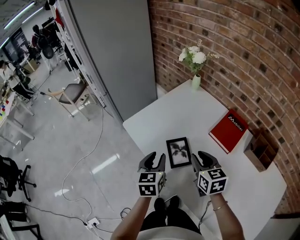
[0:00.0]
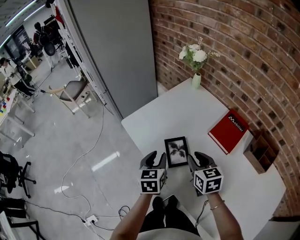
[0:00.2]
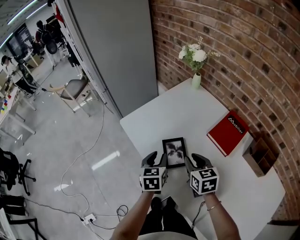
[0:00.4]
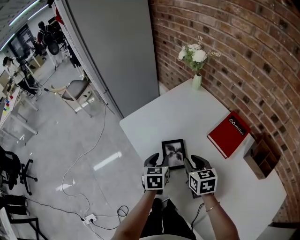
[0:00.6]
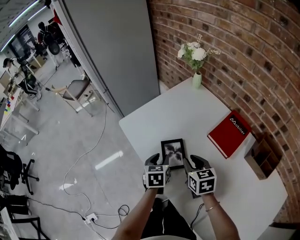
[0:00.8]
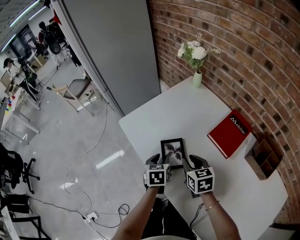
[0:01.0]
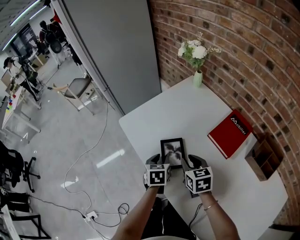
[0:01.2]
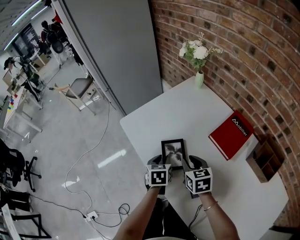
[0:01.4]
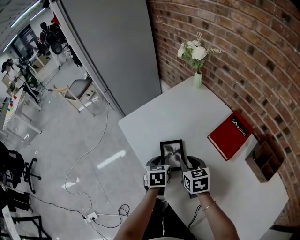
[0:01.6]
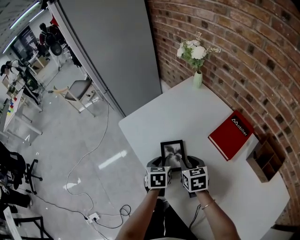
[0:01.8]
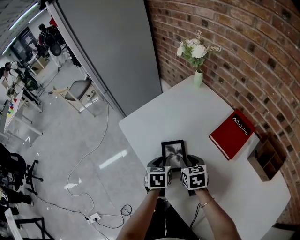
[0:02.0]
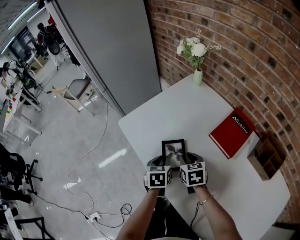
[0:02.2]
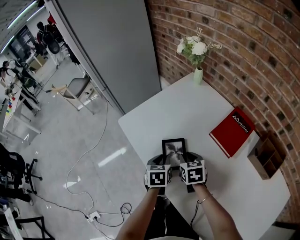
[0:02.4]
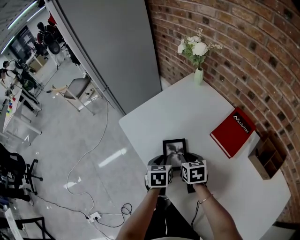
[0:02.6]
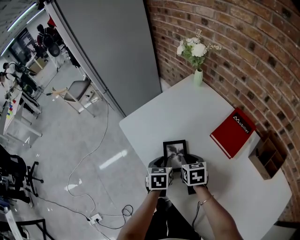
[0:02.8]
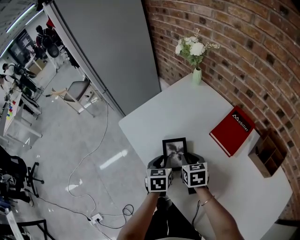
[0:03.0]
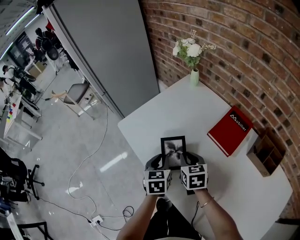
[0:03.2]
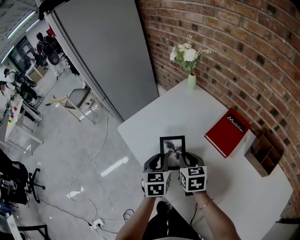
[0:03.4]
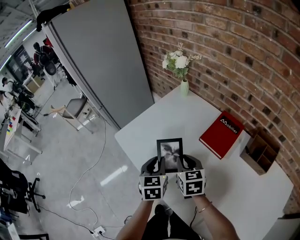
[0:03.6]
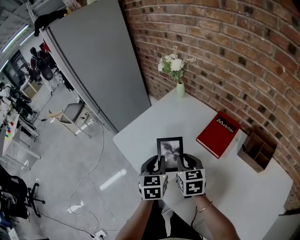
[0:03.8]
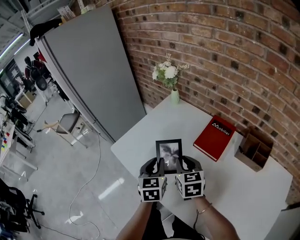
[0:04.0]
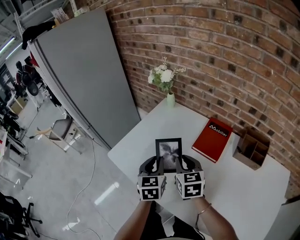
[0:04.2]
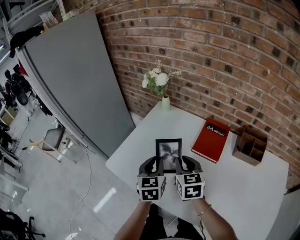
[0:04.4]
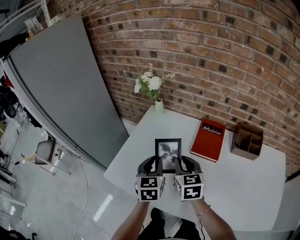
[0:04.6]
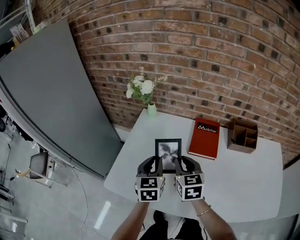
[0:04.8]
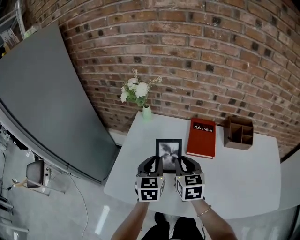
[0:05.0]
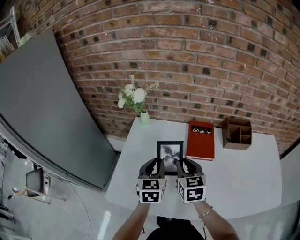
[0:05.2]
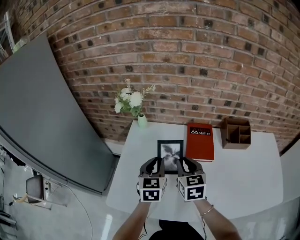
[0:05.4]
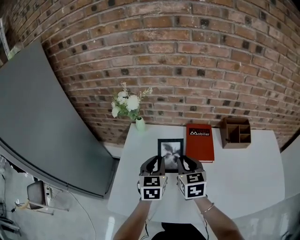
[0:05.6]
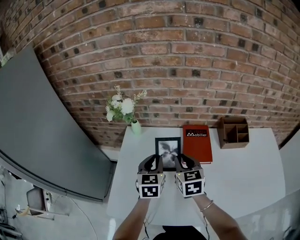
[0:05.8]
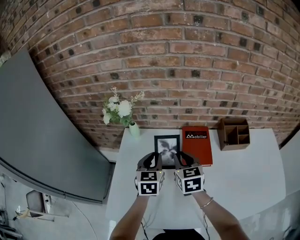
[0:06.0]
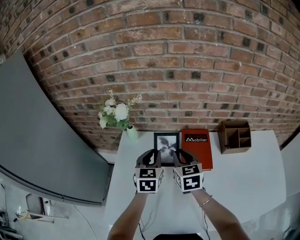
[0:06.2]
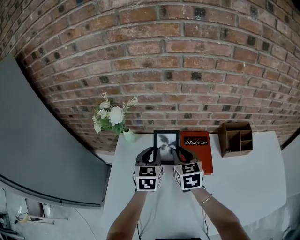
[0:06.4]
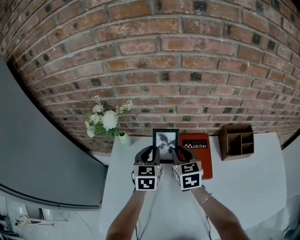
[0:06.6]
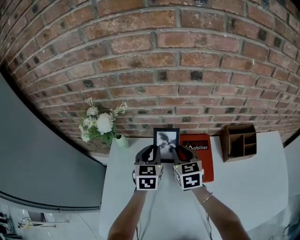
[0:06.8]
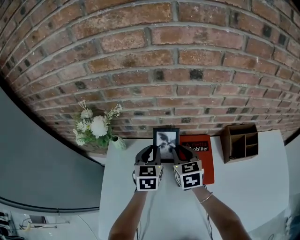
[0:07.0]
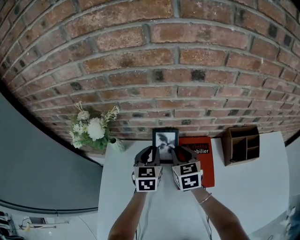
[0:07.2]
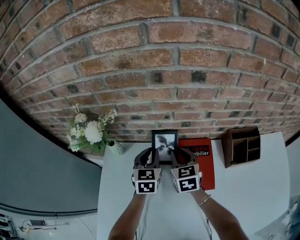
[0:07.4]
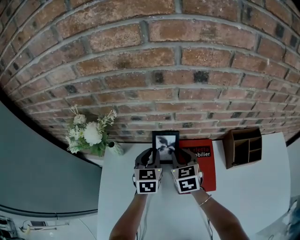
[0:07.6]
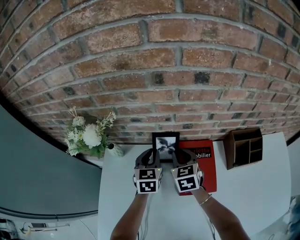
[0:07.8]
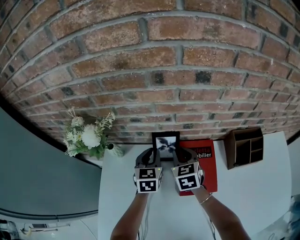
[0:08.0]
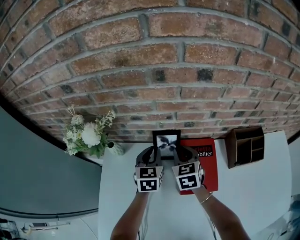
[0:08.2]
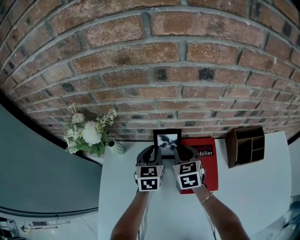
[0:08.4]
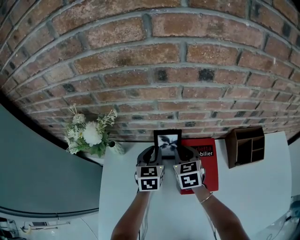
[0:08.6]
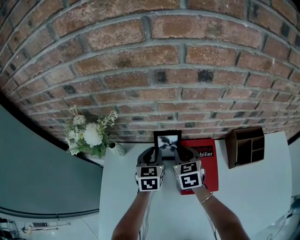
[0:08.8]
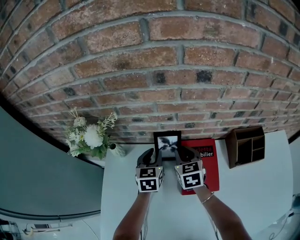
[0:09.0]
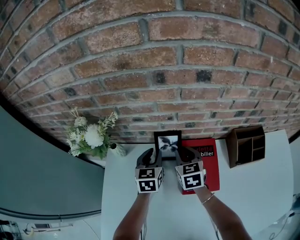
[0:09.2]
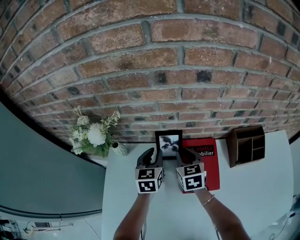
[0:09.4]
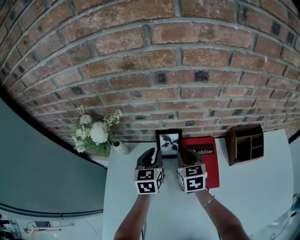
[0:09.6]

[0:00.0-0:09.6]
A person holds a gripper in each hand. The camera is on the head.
0:00.0 to 0:01.6: The left gripper heads downward and to the right, covering approximately 15 cm, and swivels about 20 degrees. Meanwhile the right gripper travels downward by roughly 10 cm.
0:01.6 to 0:03.2: There are only small adjustments of the grippers.
0:03.2 to 0:04.8: The right gripper travels upward by approximately 10 cm, and changes its angle by some 40 degrees. The left gripper shifts by roughly 20 cm, and swivels some 40 degrees.
0:04.8 to 0:06.4: Both grippers travel together forward, about 20 cm.
0:06.4 to 0:08.0: The two grippers go some 15 cm forward and downward.
0:08.0 to 0:09.6: There are only small adjustments of the grippers.

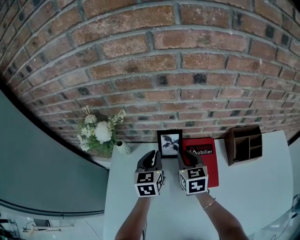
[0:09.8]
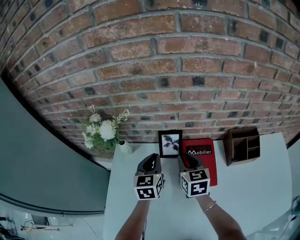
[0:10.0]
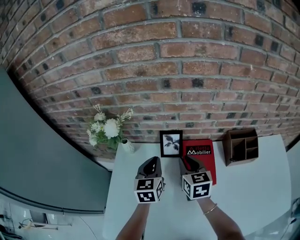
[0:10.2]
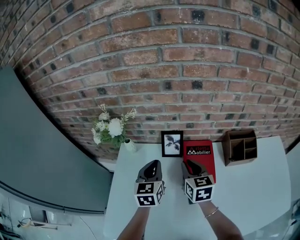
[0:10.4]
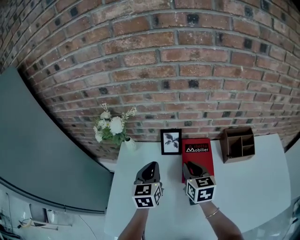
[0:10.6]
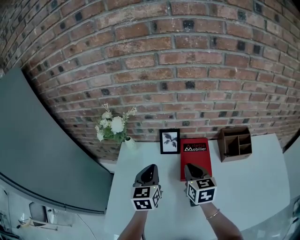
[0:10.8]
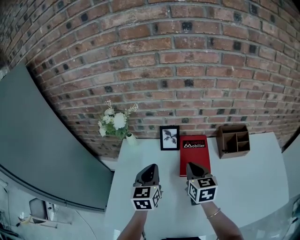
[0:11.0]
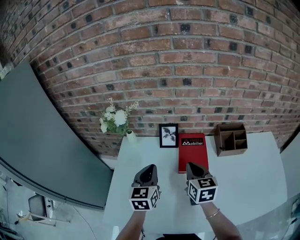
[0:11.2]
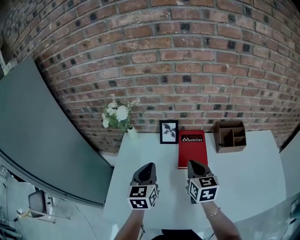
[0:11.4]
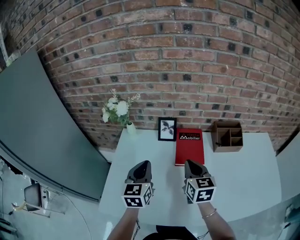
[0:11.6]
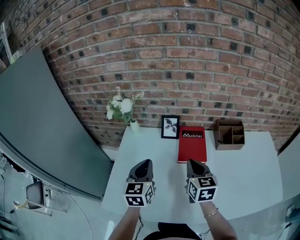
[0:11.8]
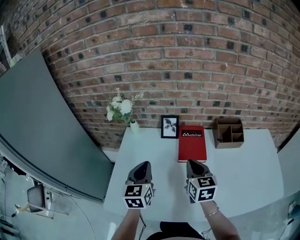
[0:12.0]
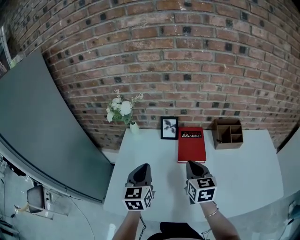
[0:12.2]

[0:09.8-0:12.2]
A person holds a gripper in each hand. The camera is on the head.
0:09.8 to 0:11.0: The grippers both shift backward and upward by about 15 cm.
0:11.0 to 0:12.2: Both grippers move backward, approximately 10 cm.

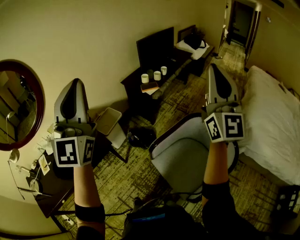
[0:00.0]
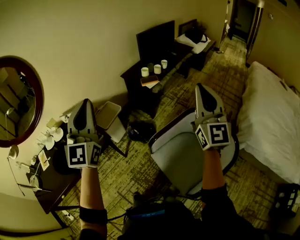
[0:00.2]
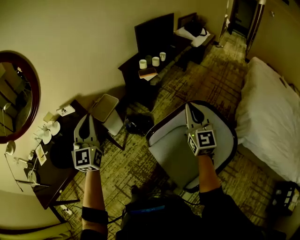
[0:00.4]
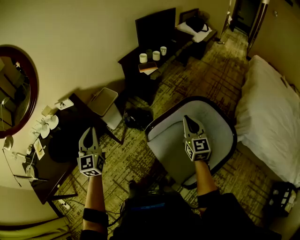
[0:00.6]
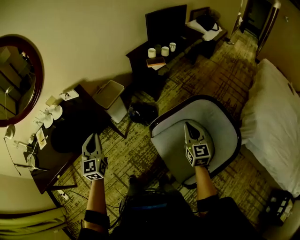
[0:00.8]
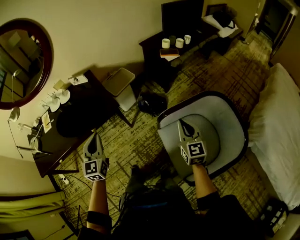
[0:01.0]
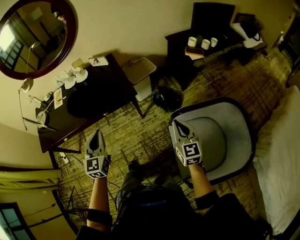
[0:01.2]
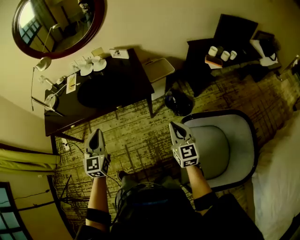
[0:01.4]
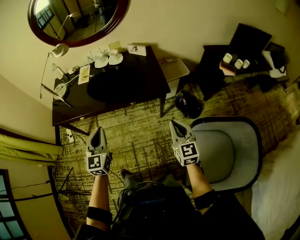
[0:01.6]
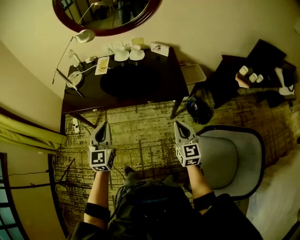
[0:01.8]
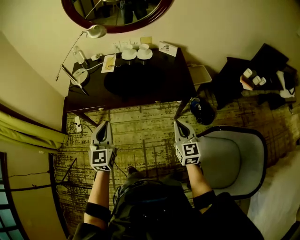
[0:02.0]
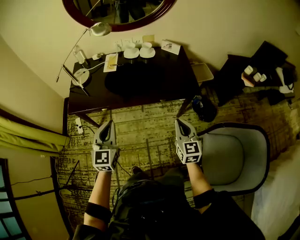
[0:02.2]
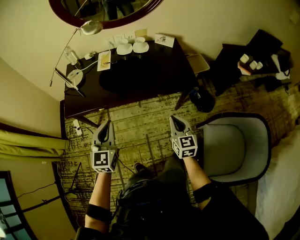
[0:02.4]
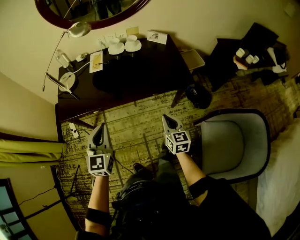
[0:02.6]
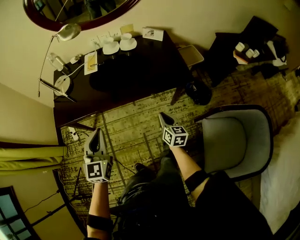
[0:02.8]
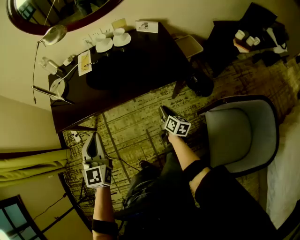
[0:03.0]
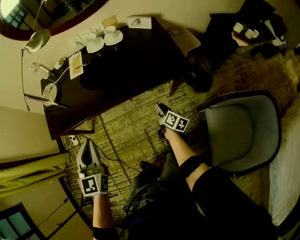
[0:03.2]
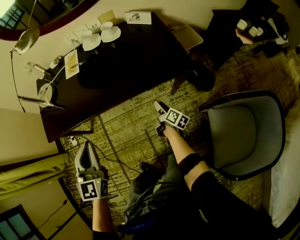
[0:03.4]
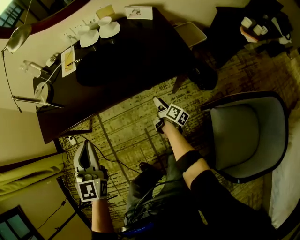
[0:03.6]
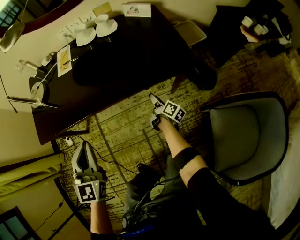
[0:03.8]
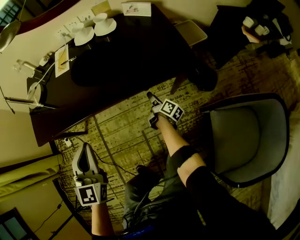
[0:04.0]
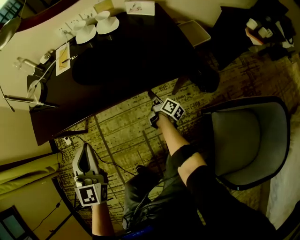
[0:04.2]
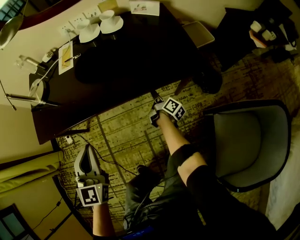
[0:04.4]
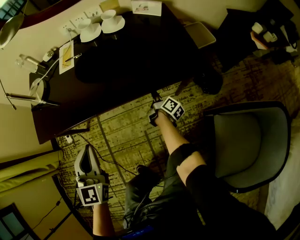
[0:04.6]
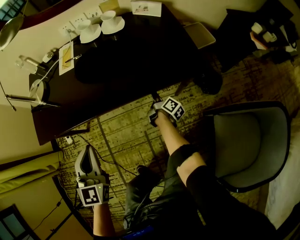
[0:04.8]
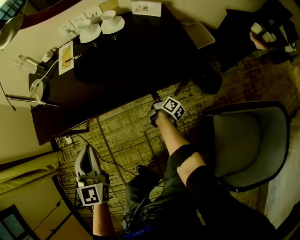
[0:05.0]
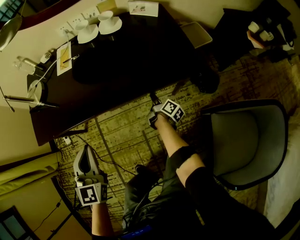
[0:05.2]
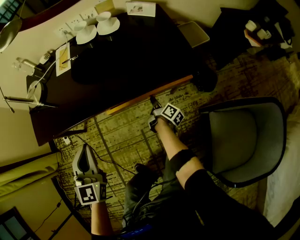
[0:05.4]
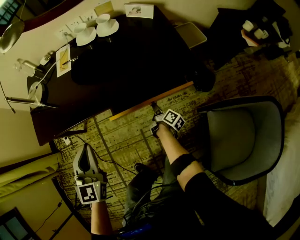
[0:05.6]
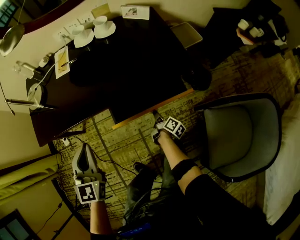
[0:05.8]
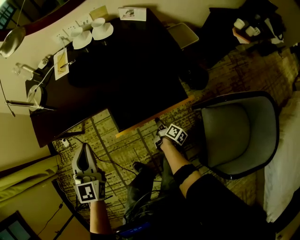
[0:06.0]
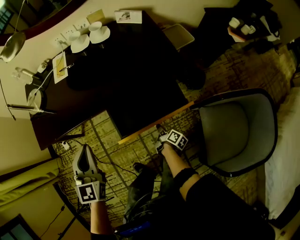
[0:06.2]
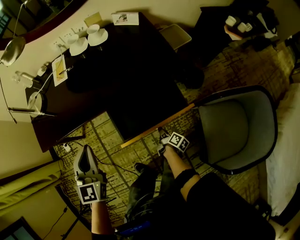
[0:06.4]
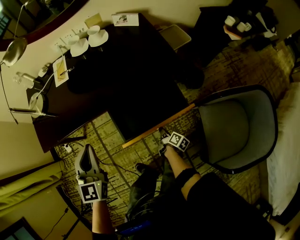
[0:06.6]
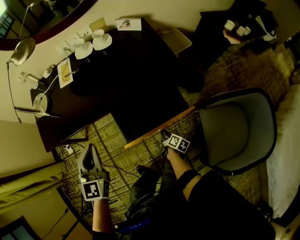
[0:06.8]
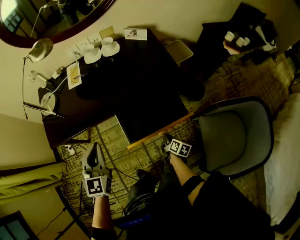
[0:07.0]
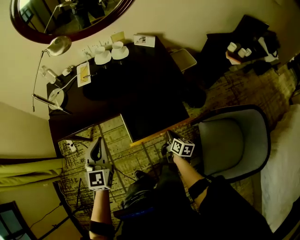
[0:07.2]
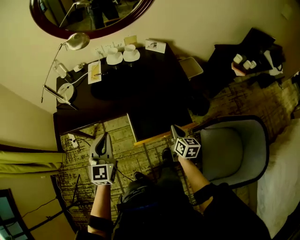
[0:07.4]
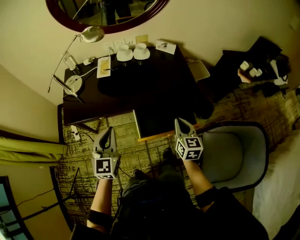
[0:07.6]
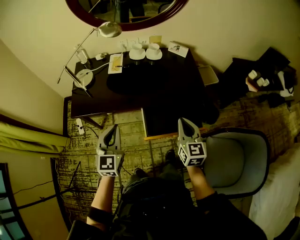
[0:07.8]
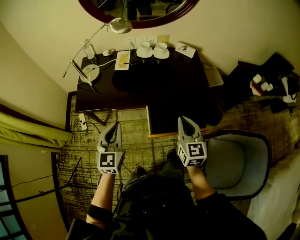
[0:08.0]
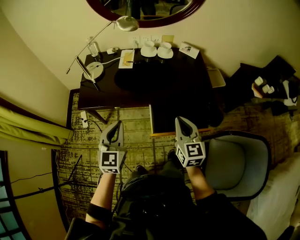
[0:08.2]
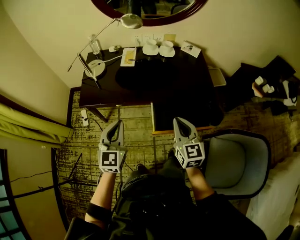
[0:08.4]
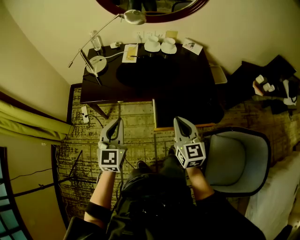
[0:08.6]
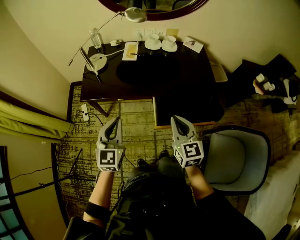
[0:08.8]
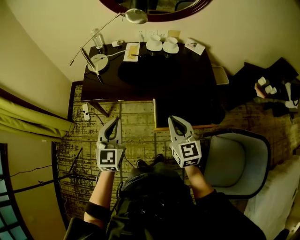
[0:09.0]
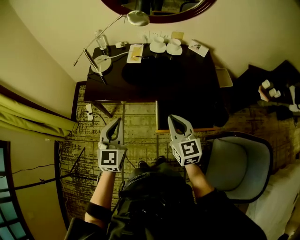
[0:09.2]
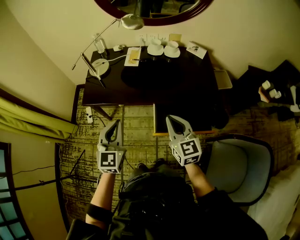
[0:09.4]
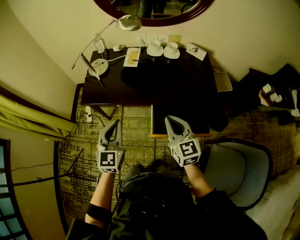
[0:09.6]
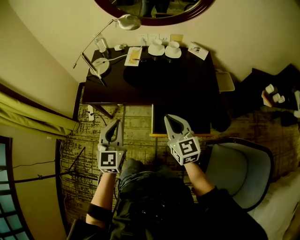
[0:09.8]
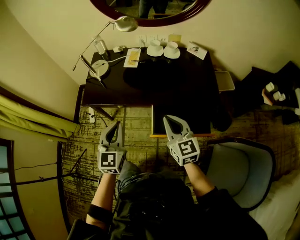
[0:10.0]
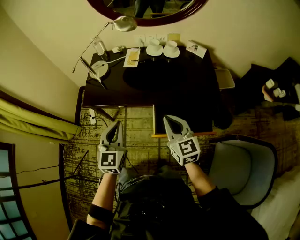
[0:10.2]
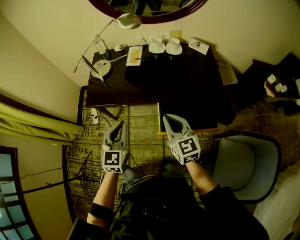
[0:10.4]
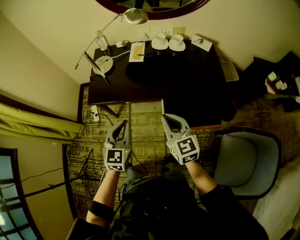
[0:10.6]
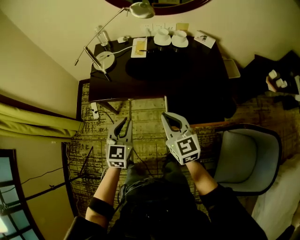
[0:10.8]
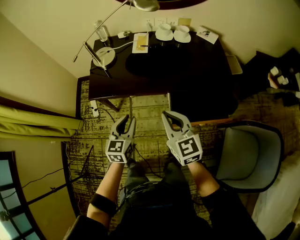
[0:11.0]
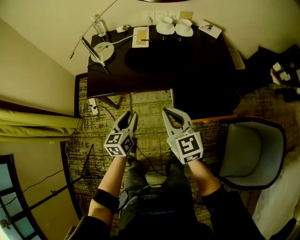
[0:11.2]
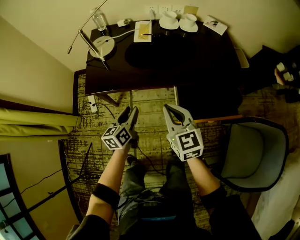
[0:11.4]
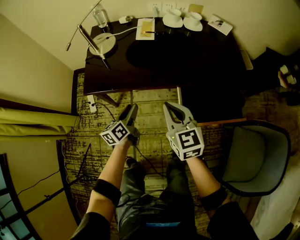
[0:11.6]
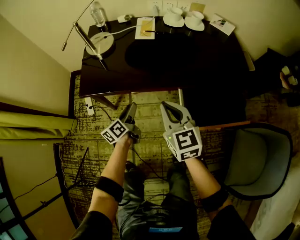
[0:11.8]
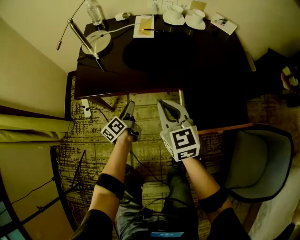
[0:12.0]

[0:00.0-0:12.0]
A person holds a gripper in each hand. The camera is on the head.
0:00.0 to 0:01.6: The pair of grippers is taken about 40 cm. Both grippers travel together downward, some 40 cm. The right gripper angles its fingers downward, by some 50 degrees; the left gripper tips its fingers downward by some 40 degrees.
0:01.6 to 0:03.0: The left gripper travels to the left and forward by some 20 cm. Meanwhile the right gripper moves downward, to the left and forward, about 35 cm, and rolls clockwise, seen from behind, by some 50 degrees.
0:03.0 to 0:04.4: The right gripper shifts roughly 25 cm downward and forward, and rotates approximately 30 degrees, while the left gripper goes some 15 cm downward and forward.
0:04.4 to 0:06.0: The right gripper heads backward, covering about 20 cm.
0:06.0 to 0:07.6: The right gripper is displaced upward by roughly 40 cm, and rolls counterclockwise, seen from behind, by about 70 degrees; the left gripper goes roughly 10 cm upward and backward.
0:07.6 to 0:09.0: The left gripper shifts some 10 cm to the left. The right gripper travels to the left by about 20 cm, and turns by about 20 degrees.
0:10.4 to 0:12.0: The right gripper goes some 25 cm downward, to the left and forward; the left gripper is displaced downward and forward by about 40 cm, rolls counterclockwise, seen from behind, by about 70 degrees, and opens up.
